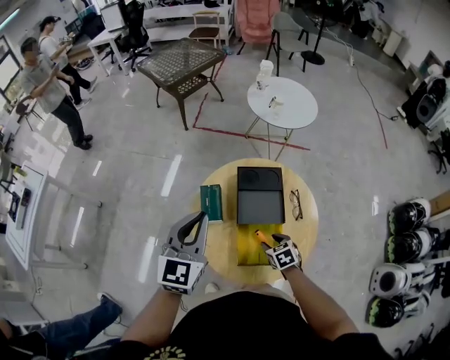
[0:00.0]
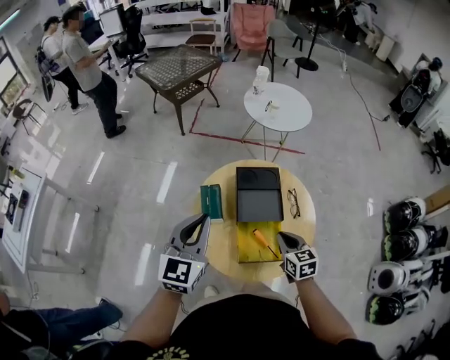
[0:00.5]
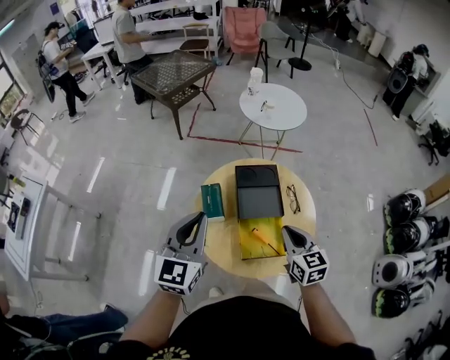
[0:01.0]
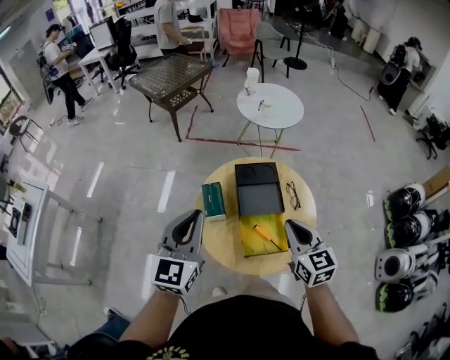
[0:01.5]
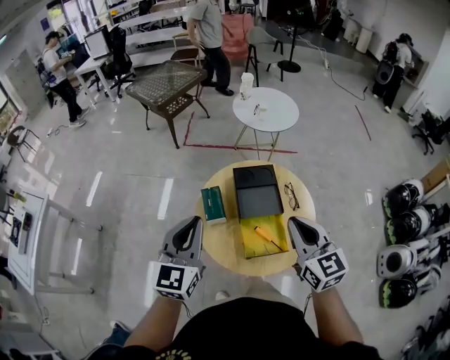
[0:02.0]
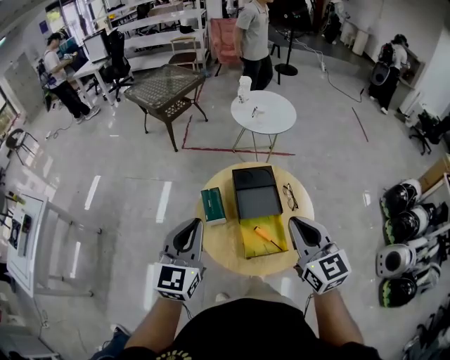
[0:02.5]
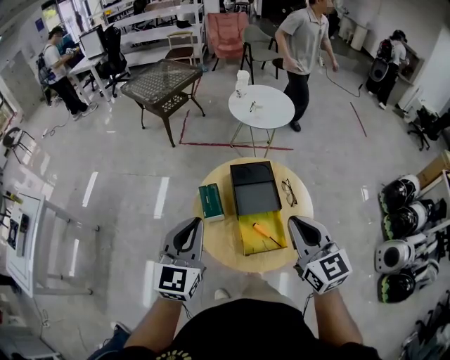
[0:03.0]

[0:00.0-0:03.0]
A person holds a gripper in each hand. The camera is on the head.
0:00.0 to 0:01.5: The left gripper moves backward, about 5 cm. The right gripper shifts approximately 30 cm upward, tilts its fingers about 40 degrees upward, and closes.
0:01.5 to 0:03.0: The right gripper goes about 10 cm upward.

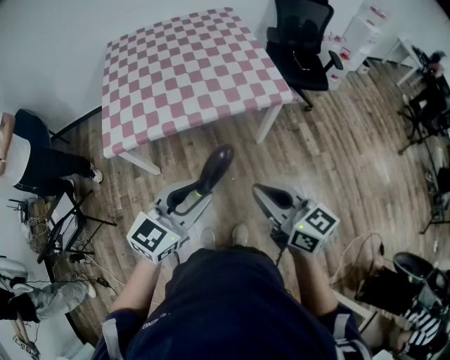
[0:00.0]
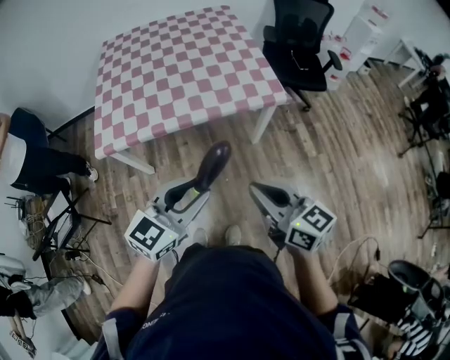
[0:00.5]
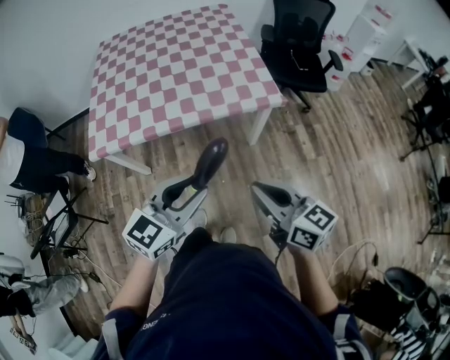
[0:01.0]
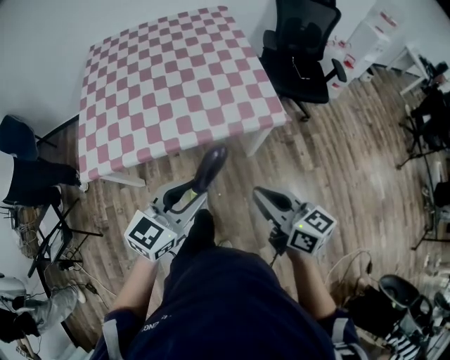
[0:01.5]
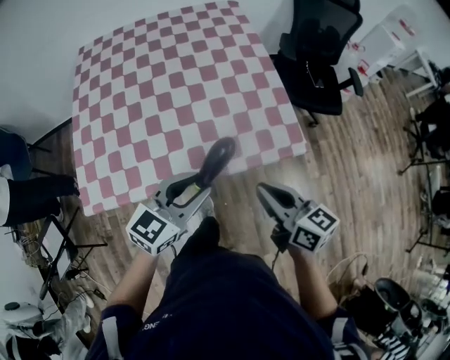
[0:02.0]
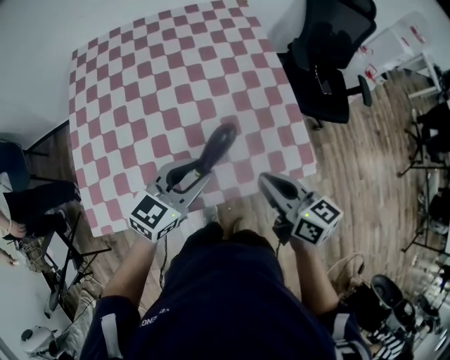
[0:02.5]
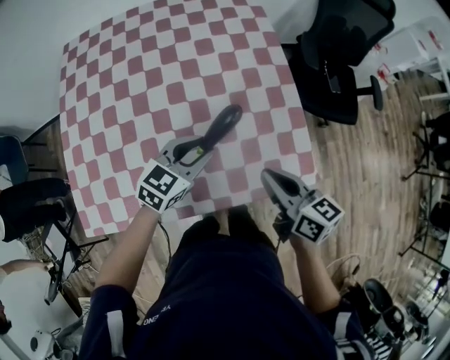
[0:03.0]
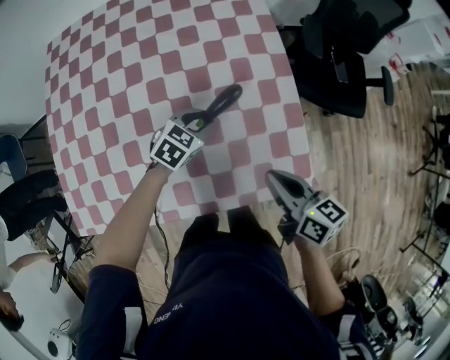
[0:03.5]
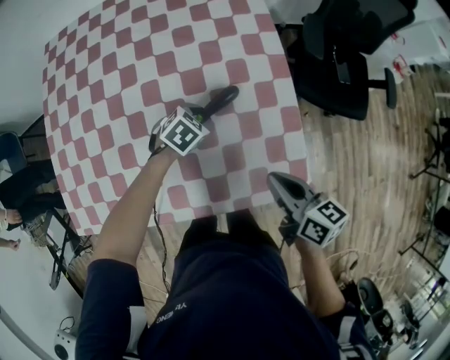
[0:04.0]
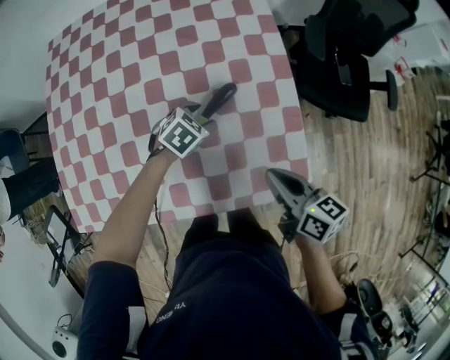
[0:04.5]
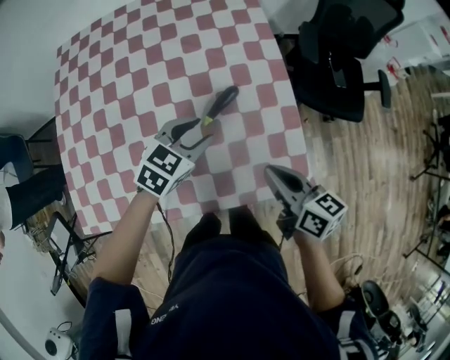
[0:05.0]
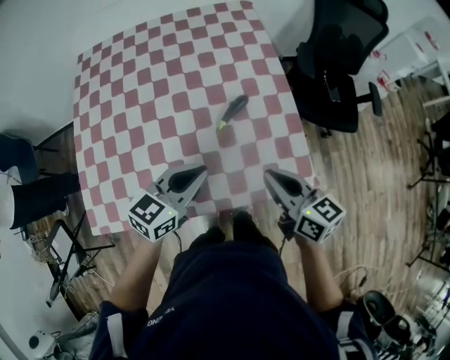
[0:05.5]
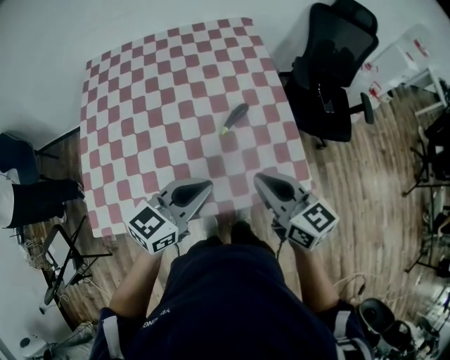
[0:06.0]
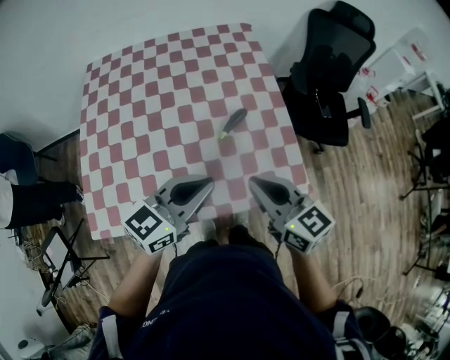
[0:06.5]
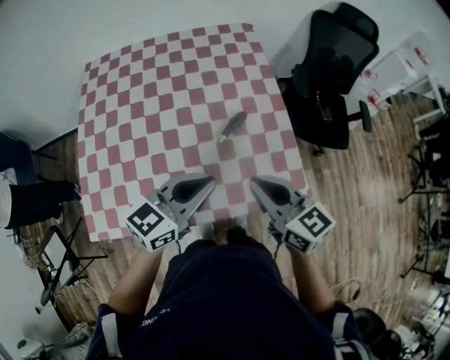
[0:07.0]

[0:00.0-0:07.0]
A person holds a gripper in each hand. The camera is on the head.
0:00.0 to 0:02.0: Both grippers travel together forward, about 35 cm.
0:02.0 to 0:03.5: The right gripper heads forward and downward, covering approximately 25 cm. The left gripper shifts roughly 40 cm forward and downward, and angles its fingers downward, by about 30 degrees.
0:03.5 to 0:05.0: The left gripper is displaced upward by approximately 10 cm.
0:05.0 to 0:07.0: The left gripper goes roughly 20 cm upward and backward, points its fingers some 30 degrees further upward, and closes. The right gripper travels upward, to the left and backward by roughly 15 cm, and rotates roughly 30 degrees.

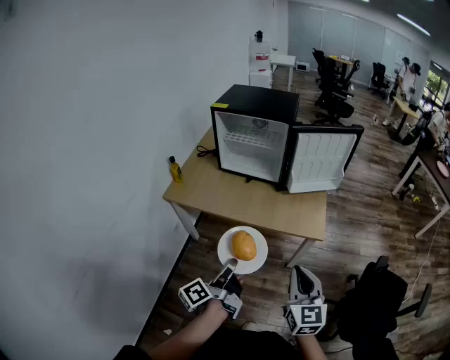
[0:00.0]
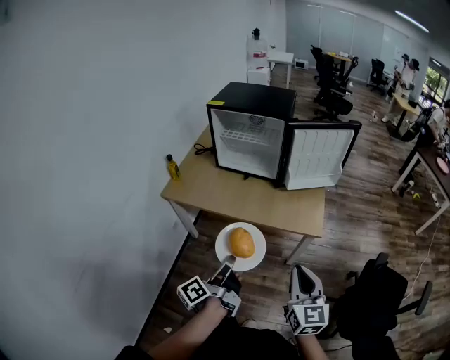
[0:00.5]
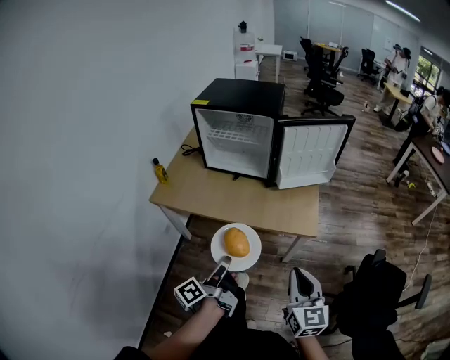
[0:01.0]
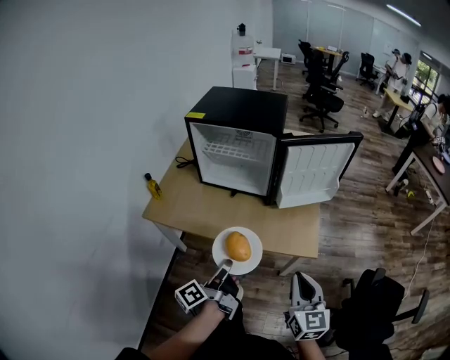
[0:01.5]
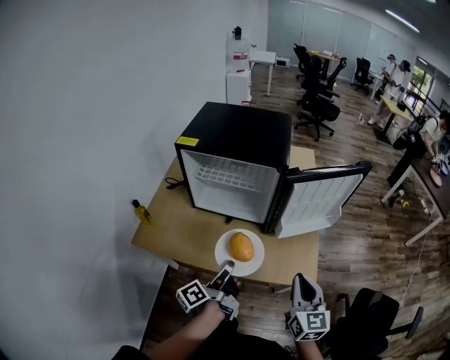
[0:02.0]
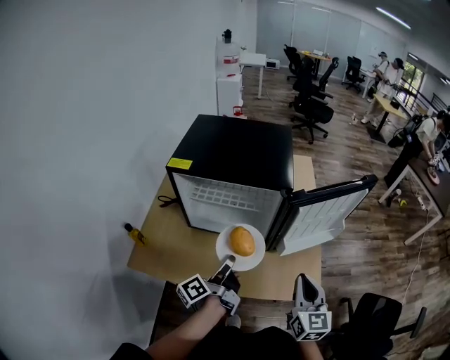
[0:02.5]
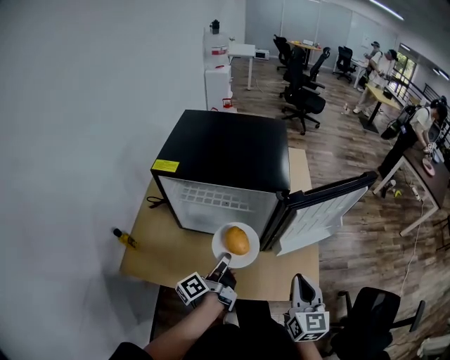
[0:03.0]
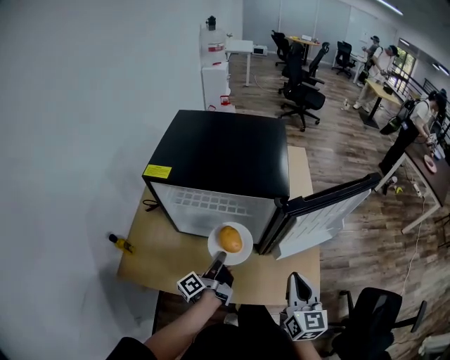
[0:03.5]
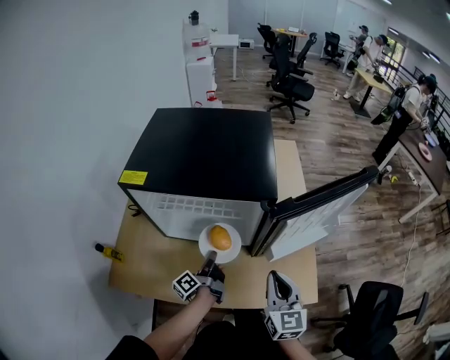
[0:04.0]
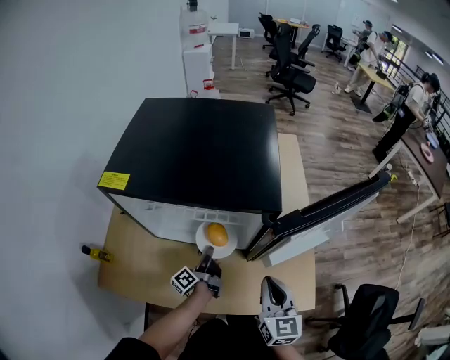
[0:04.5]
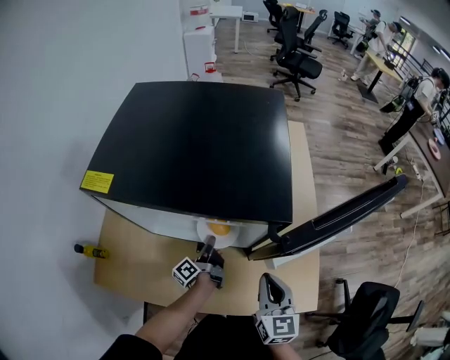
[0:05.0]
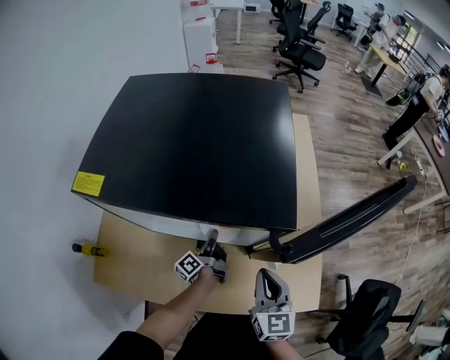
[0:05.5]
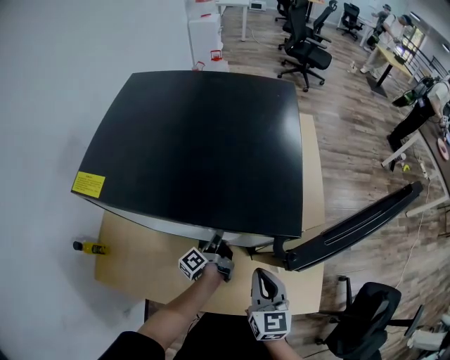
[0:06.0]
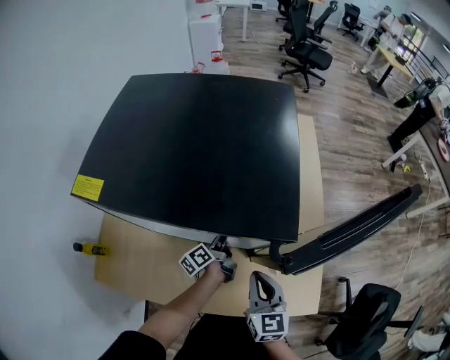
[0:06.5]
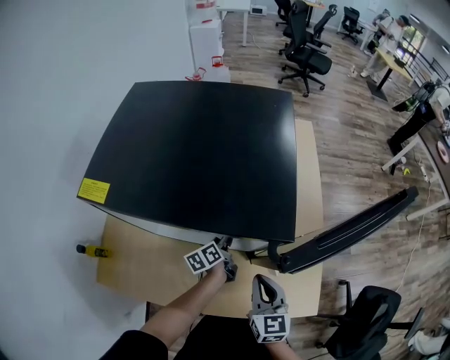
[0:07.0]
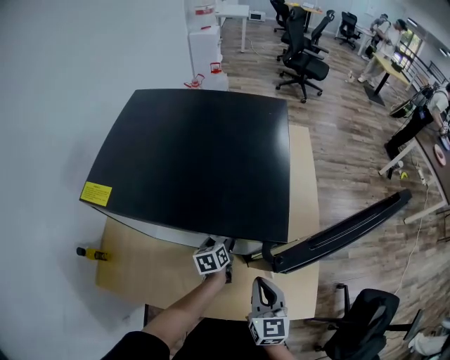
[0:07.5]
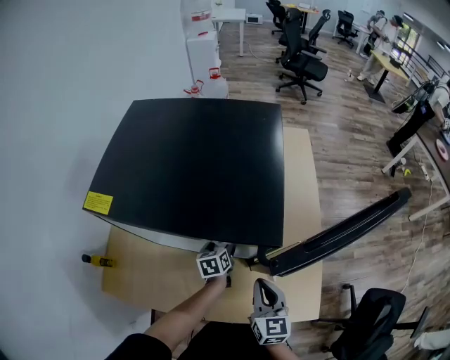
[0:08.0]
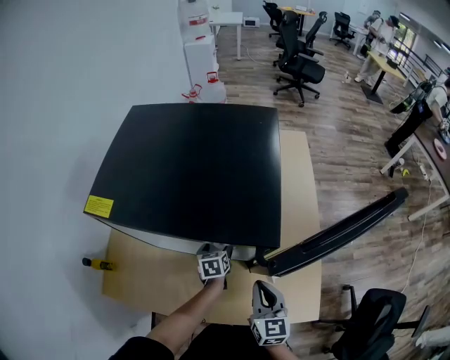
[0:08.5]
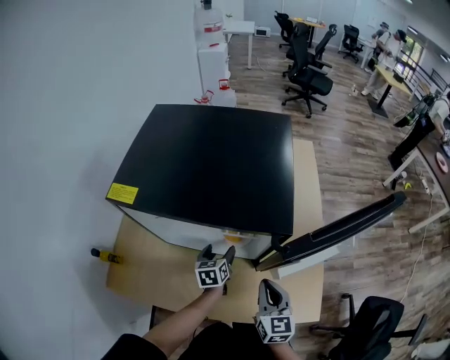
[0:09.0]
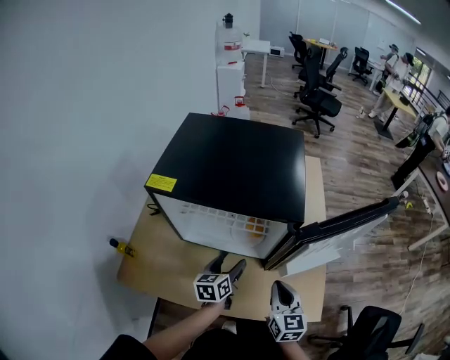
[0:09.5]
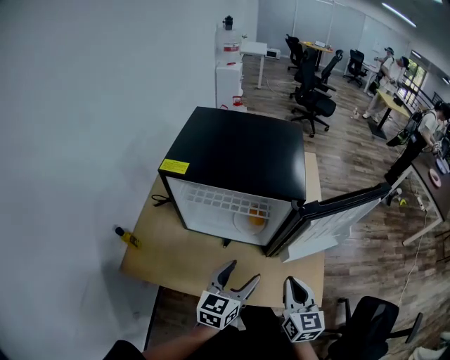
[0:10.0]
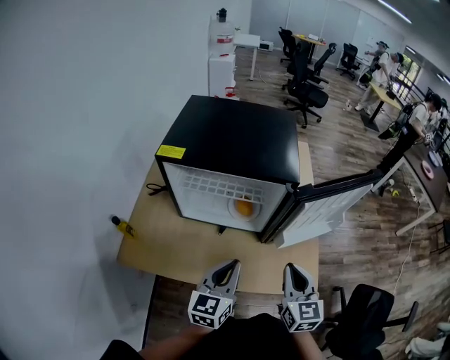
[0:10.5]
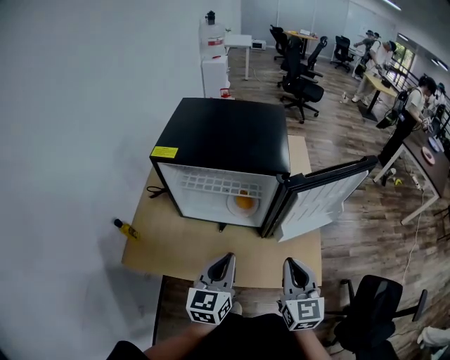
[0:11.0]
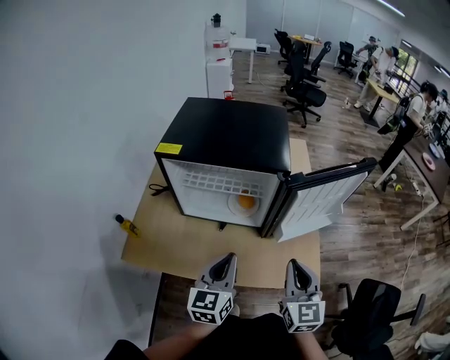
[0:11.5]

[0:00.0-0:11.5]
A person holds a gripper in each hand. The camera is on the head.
0:00.0 to 0:02.0: The grippers both shift forward by some 25 cm.
0:02.0 to 0:04.0: The left gripper moves forward and downward, roughly 30 cm. The right gripper moves forward and downward, roughly 15 cm.
0:04.0 to 0:06.0: The left gripper shifts roughly 15 cm forward and downward; the right gripper moves downward and forward, approximately 10 cm.
0:06.0 to 0:07.5: The left gripper rotates around the line of its fingers by roughly 50 degrees, clockwise from behind, and opens.
0:07.5 to 0:09.5: The right gripper shifts by about 5 cm, while the left gripper moves upward and backward, roughly 20 cm.
0:09.5 to 0:11.5: The right gripper is displaced upward and backward by some 15 cm. The left gripper moves backward and upward, about 25 cm, changes its angle by about 20 degrees, and closes up.

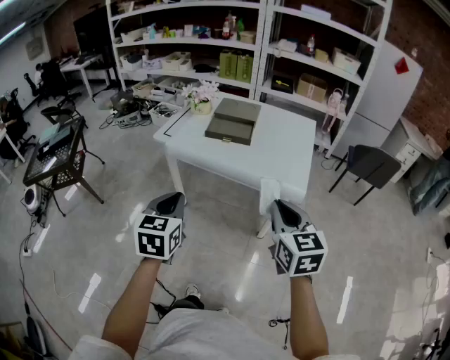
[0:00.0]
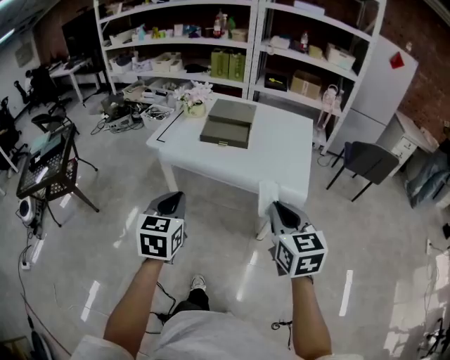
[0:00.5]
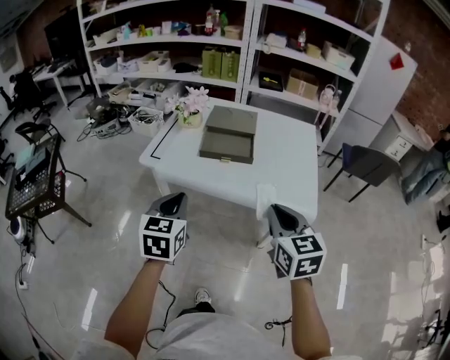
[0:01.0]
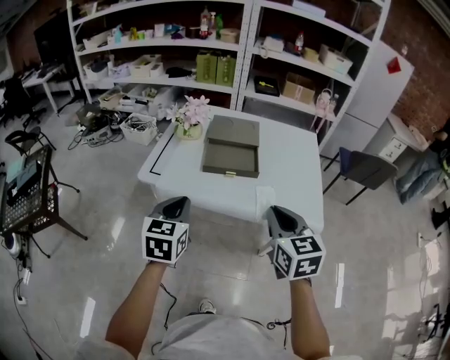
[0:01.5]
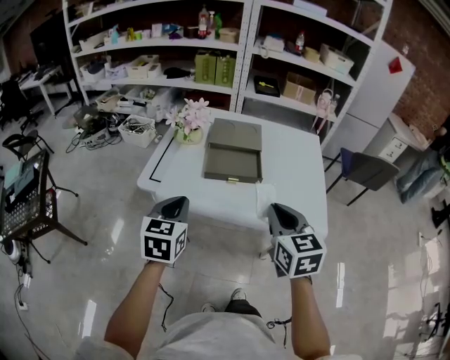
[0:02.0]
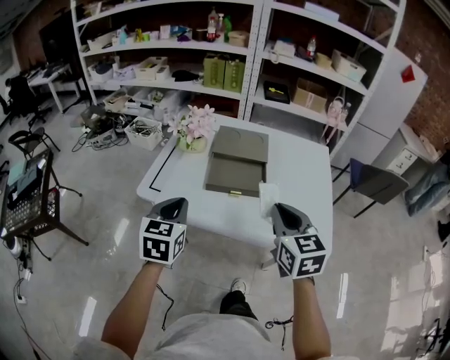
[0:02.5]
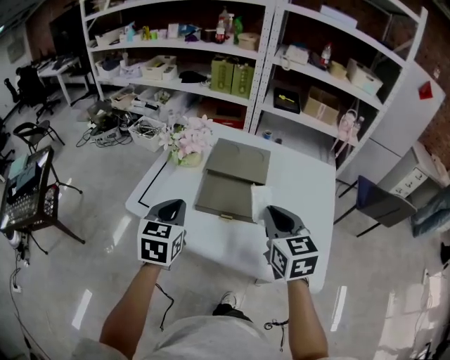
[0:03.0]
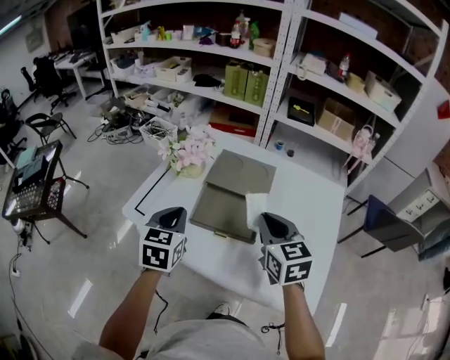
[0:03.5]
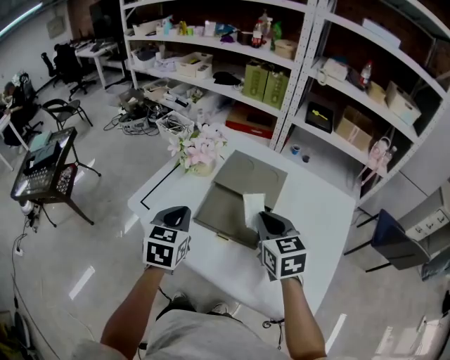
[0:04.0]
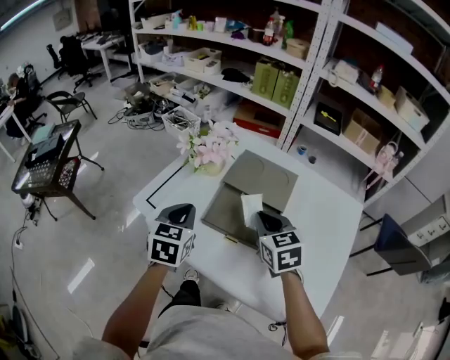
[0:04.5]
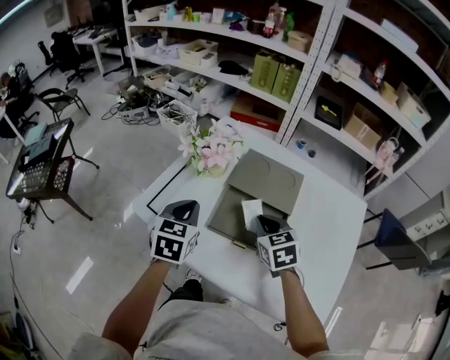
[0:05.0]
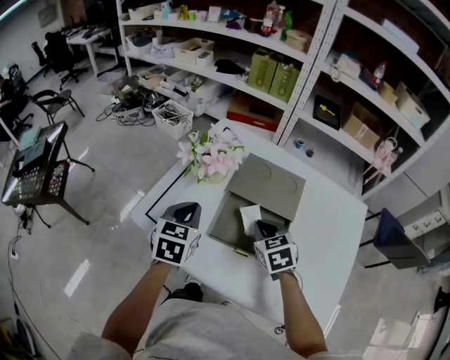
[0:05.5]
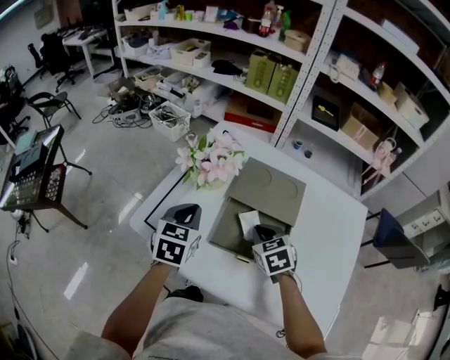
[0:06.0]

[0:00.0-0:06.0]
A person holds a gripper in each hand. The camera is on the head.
0:00.0 to 0:02.0: The left gripper moves forward, some 30 cm. Meanwhile the right gripper is displaced forward and to the left by roughly 25 cm.
0:02.0 to 0:04.0: The left gripper moves forward and to the right, some 20 cm, while the right gripper shifts about 25 cm forward, and turns by some 20 degrees.
0:04.0 to 0:06.0: The left gripper goes some 10 cm forward. The right gripper is displaced downward, forward and to the left by about 15 cm, and turns by about 20 degrees.
